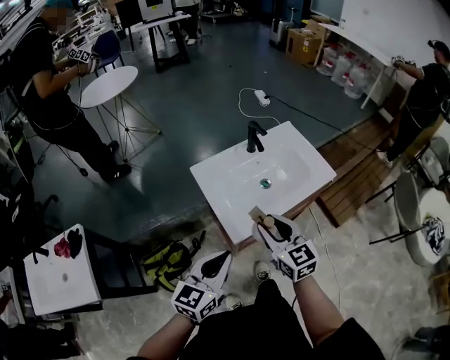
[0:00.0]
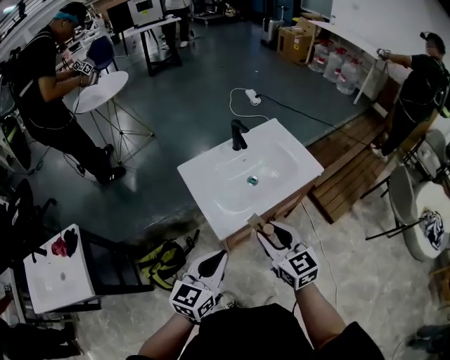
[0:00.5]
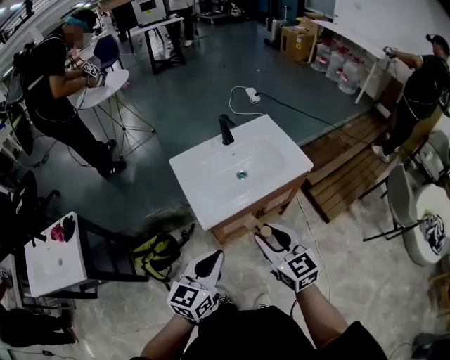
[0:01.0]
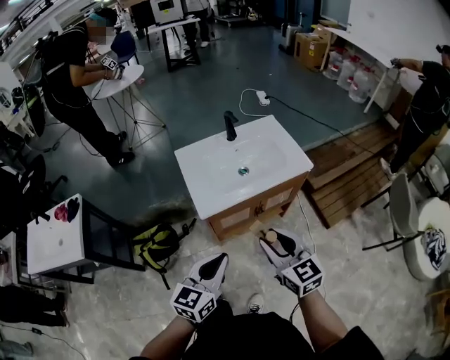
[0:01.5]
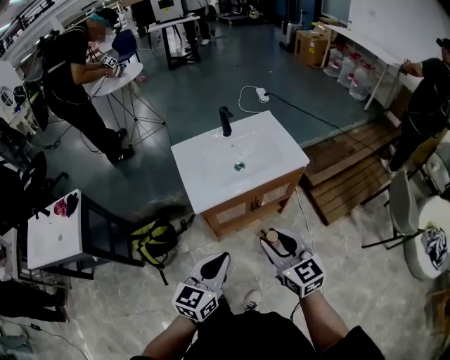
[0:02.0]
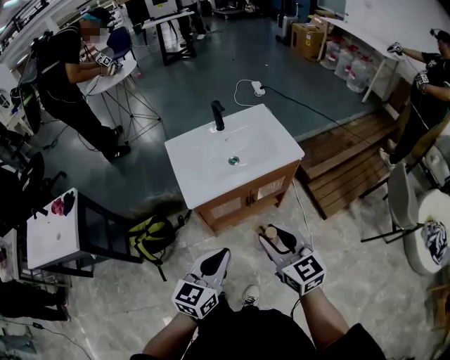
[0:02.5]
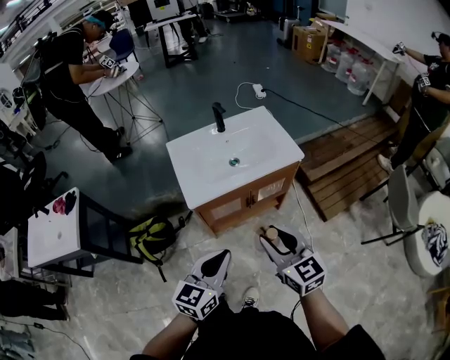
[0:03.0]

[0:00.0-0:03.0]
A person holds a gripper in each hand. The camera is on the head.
0:00.0 to 0:01.5: Both grippers travel together to the right and backward, roughly 20 cm.
0:01.5 to 0:03.0: Both grippers move to the right, approximately 5 cm.

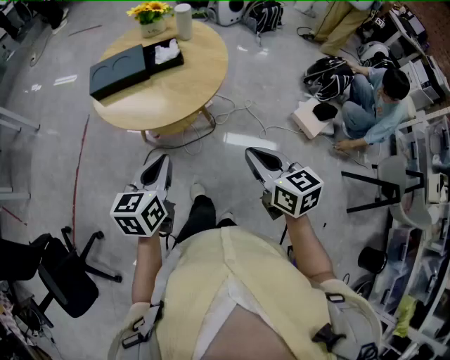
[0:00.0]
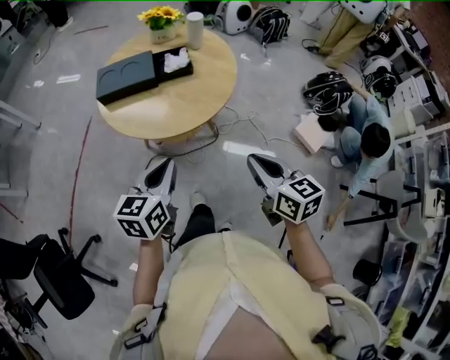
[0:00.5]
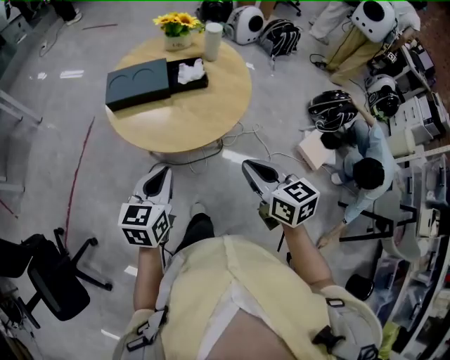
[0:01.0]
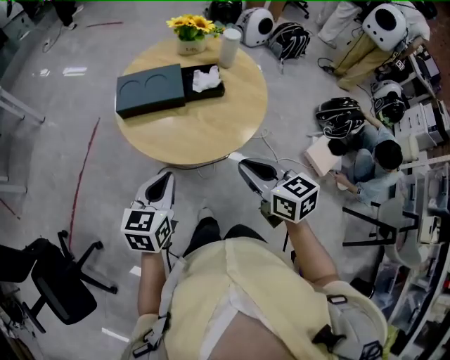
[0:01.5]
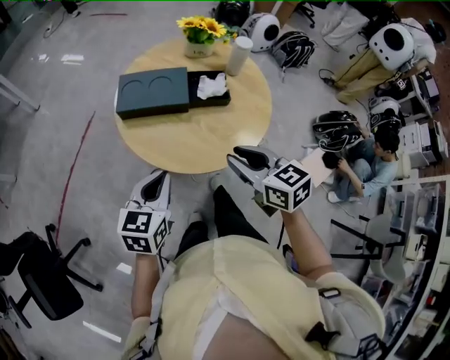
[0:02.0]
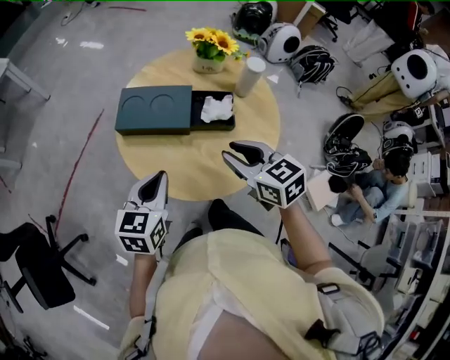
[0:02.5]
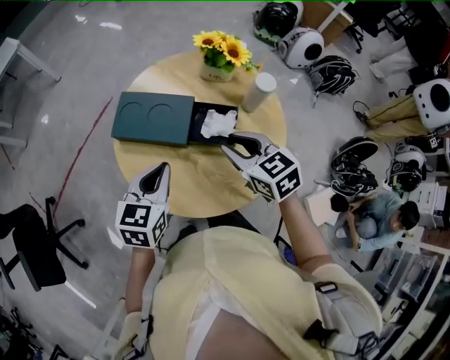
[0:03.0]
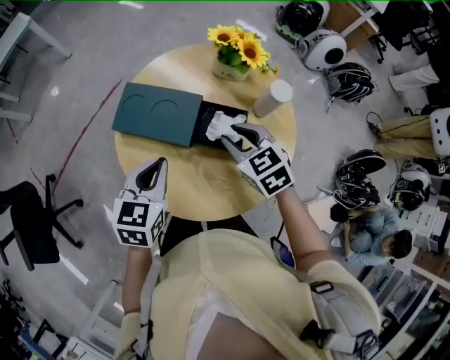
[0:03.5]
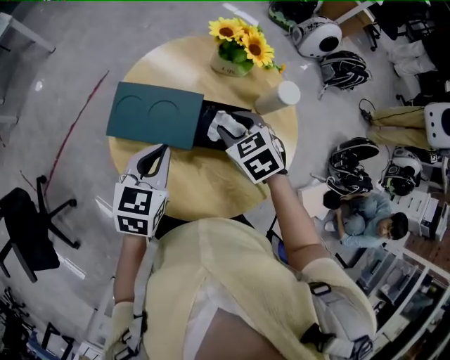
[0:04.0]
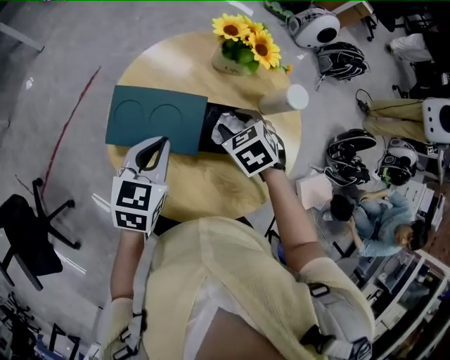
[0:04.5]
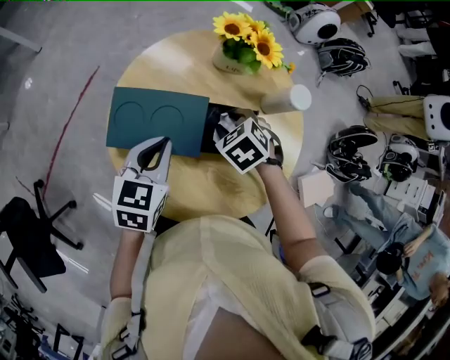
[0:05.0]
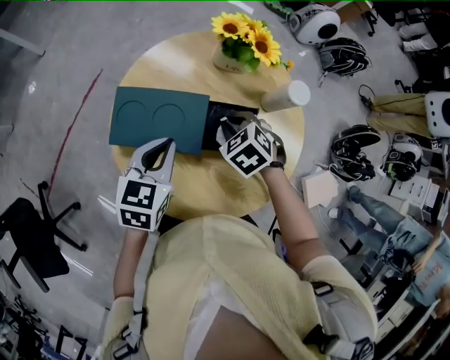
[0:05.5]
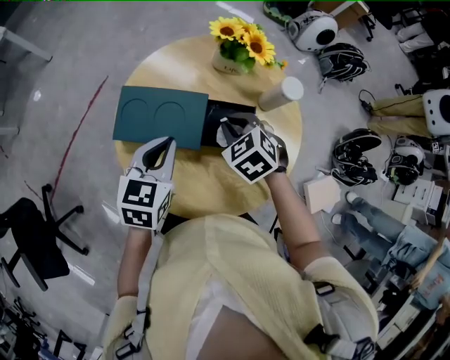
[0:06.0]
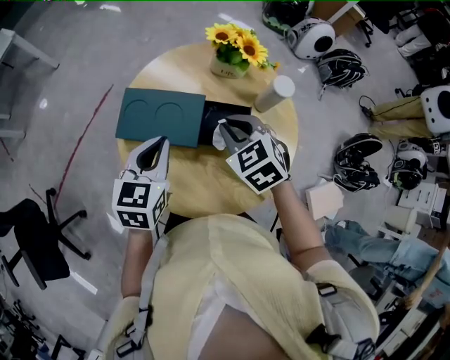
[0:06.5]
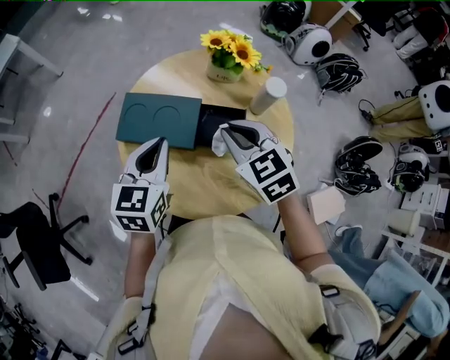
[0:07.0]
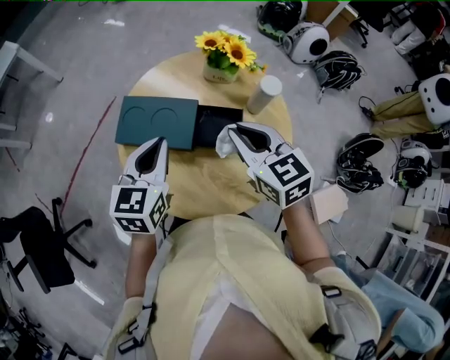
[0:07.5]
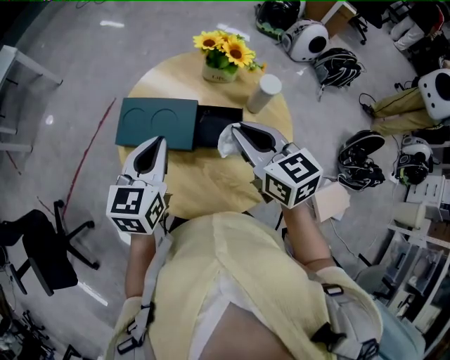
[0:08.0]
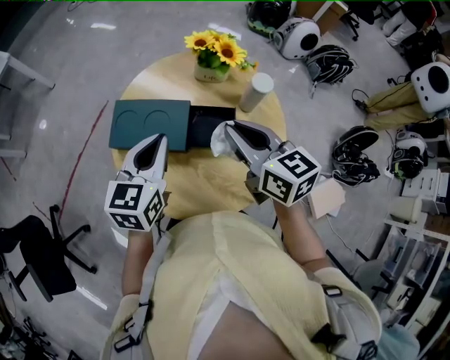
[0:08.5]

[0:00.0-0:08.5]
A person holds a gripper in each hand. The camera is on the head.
0:00.0 to 0:02.0: Both grippers move forward and to the left, roughly 20 cm. The right gripper turns by roughly 20 degrees, and opens its fingers.
0:02.0 to 0:04.0: The left gripper heads forward, covering some 20 cm; the right gripper goes roughly 30 cm forward and downward, and changes its angle by roughly 40 degrees.
0:04.0 to 0:06.5: The right gripper shifts approximately 5 cm upward, and closes its fingers.
0:06.5 to 0:08.5: The right gripper moves upward, roughly 10 cm, and rotates roughly 40 degrees. Meanwhile the left gripper moves roughly 5 cm.

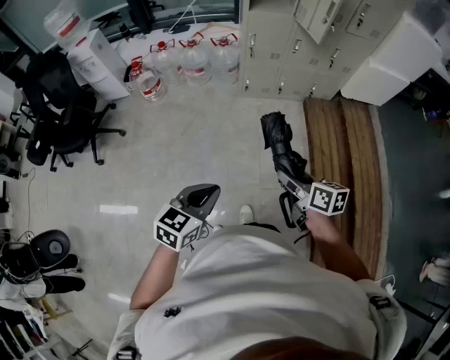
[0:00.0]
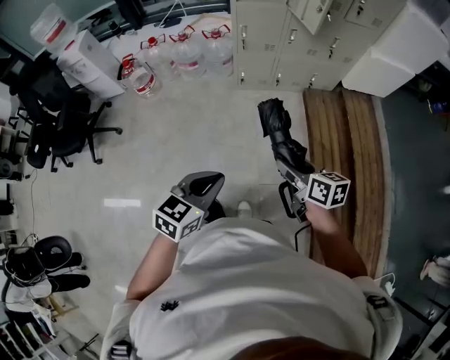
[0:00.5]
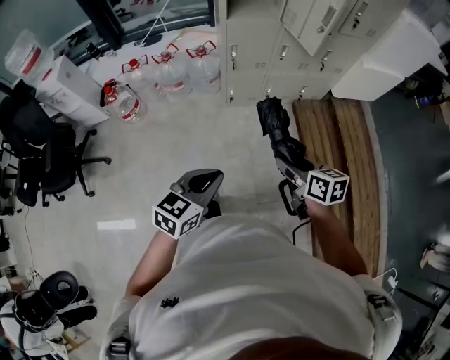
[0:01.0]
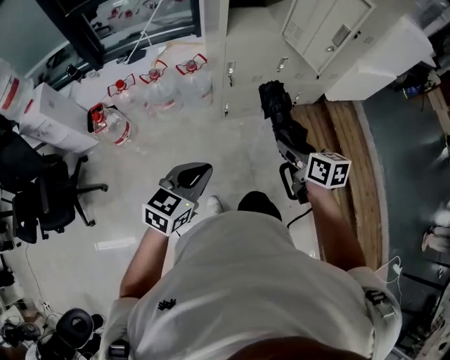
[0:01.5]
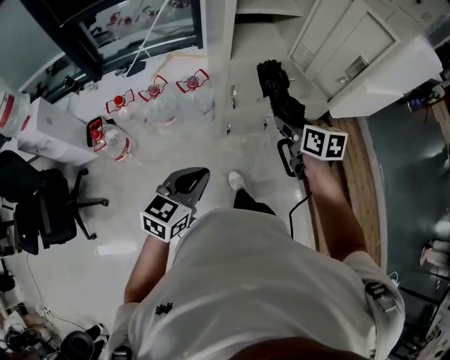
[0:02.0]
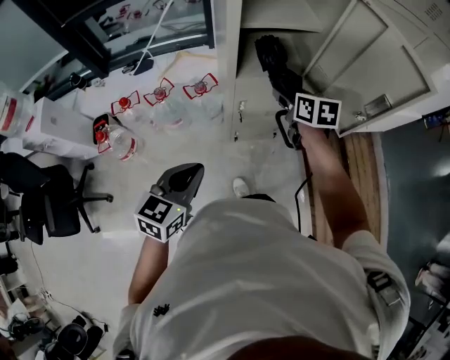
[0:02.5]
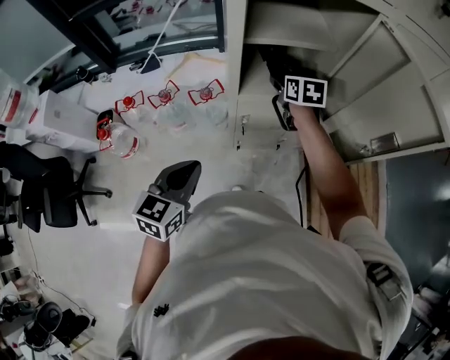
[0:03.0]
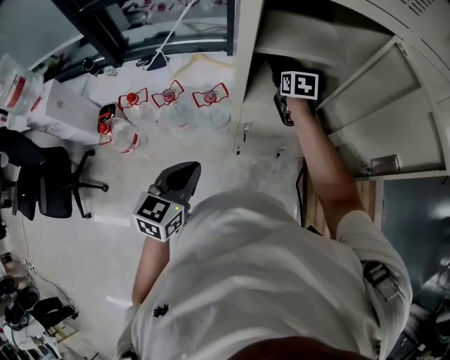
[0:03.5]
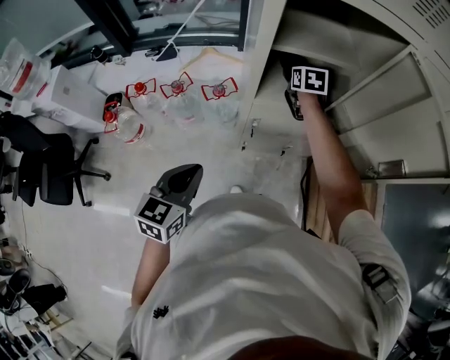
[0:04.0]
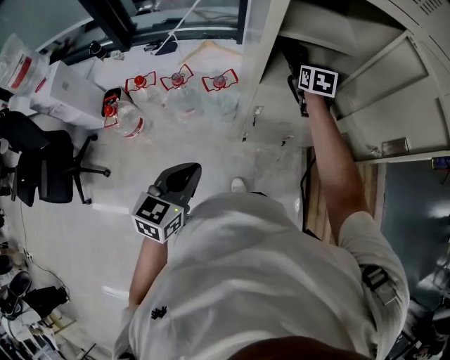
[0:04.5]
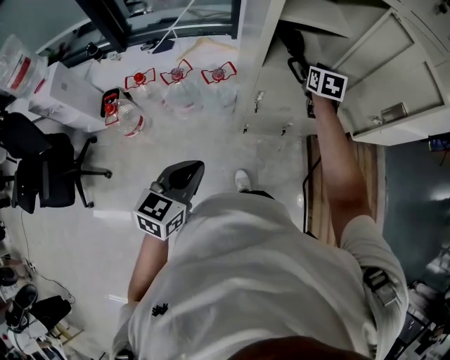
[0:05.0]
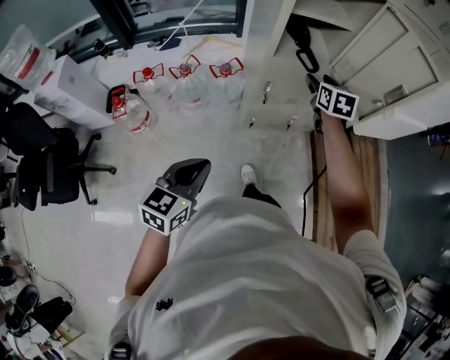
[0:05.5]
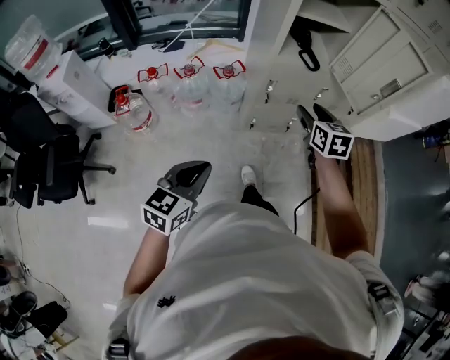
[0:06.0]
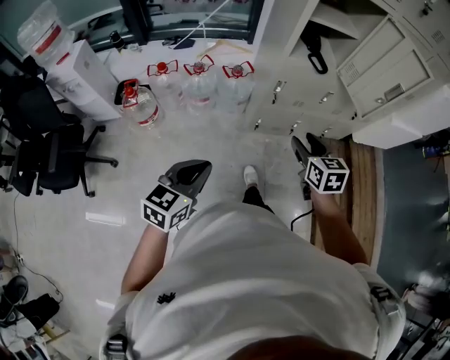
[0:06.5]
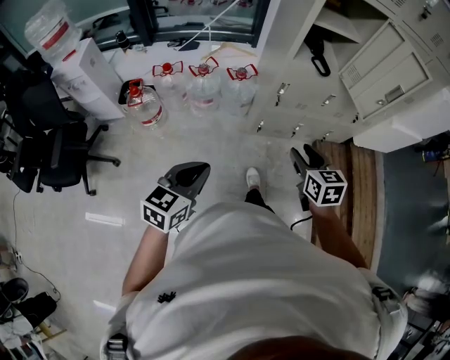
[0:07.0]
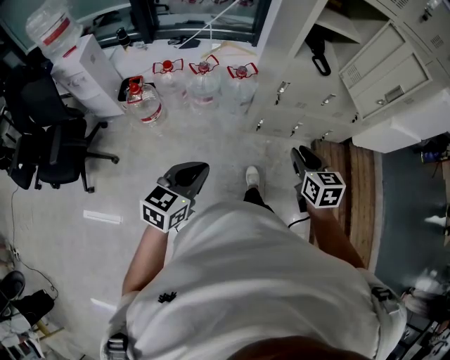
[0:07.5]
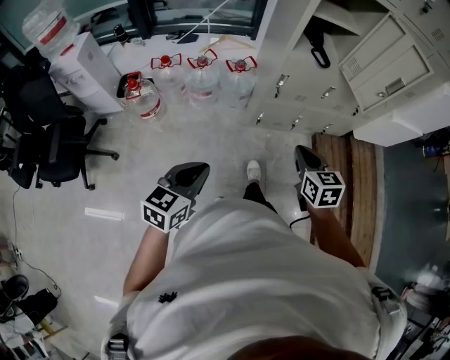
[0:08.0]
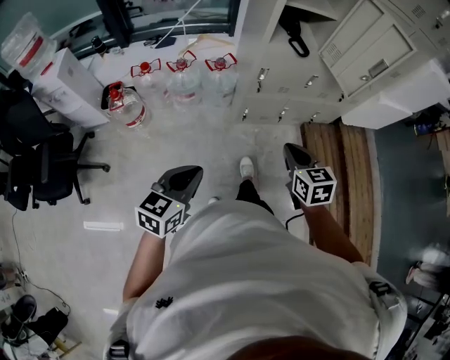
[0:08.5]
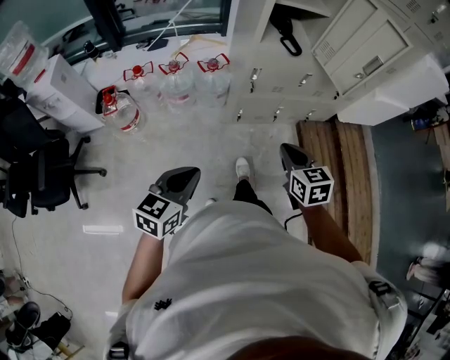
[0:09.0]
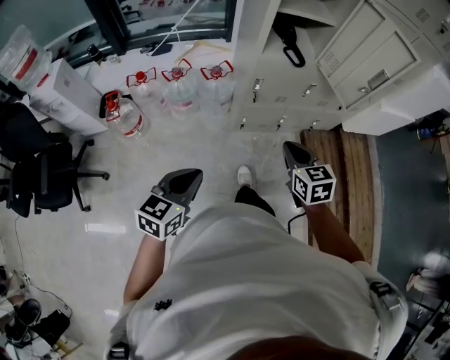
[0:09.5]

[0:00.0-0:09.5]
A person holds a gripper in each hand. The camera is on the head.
0:00.0 to 0:02.0: The pair of grippers is taken forward, roughly 60 cm. The right gripper swivels roughly 20 degrees.
0:02.0 to 0:04.0: The left gripper heads forward, covering approximately 15 cm, and changes its angle by about 20 degrees. Meanwhile the right gripper heads forward, covering approximately 40 cm, and turns by approximately 20 degrees.
0:04.0 to 0:05.5: The two grippers go about 20 cm backward.
0:05.5 to 0:07.5: The left gripper travels backward and to the left by roughly 15 cm. Meanwhile the right gripper is displaced backward by about 35 cm, and closes up.
0:07.5 to 0:09.5: The right gripper shifts roughly 5 cm forward, and closes up. Meanwhile the left gripper heads to the right and forward, covering roughly 10 cm.

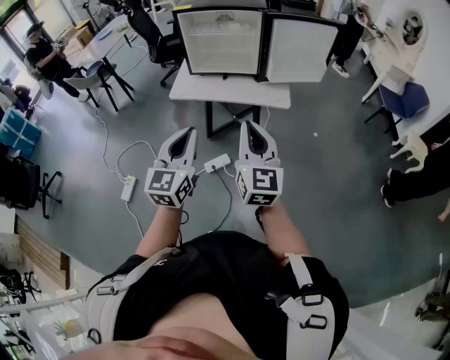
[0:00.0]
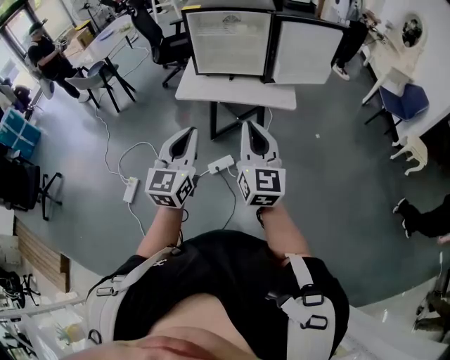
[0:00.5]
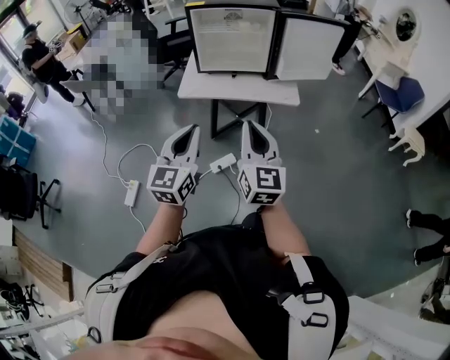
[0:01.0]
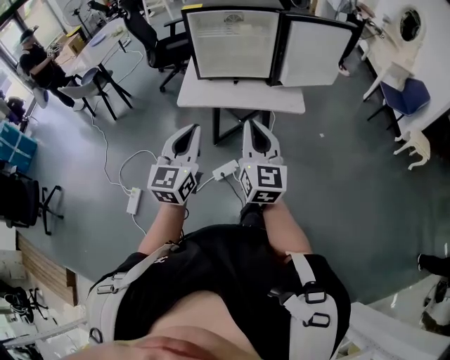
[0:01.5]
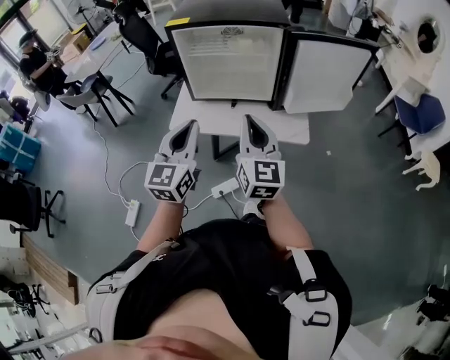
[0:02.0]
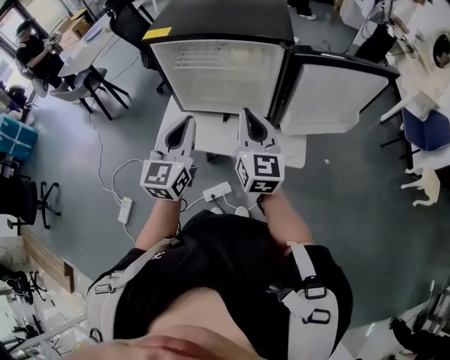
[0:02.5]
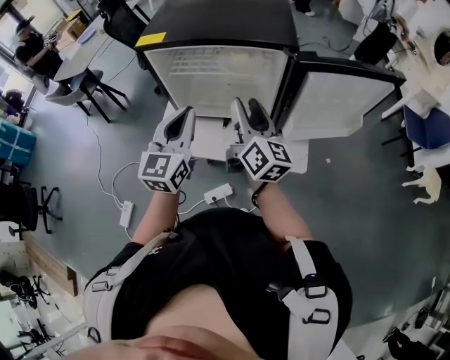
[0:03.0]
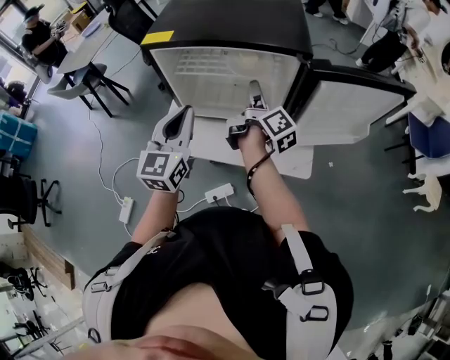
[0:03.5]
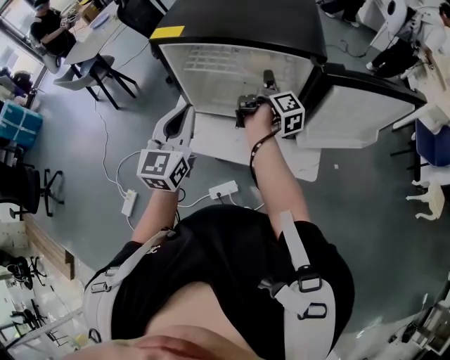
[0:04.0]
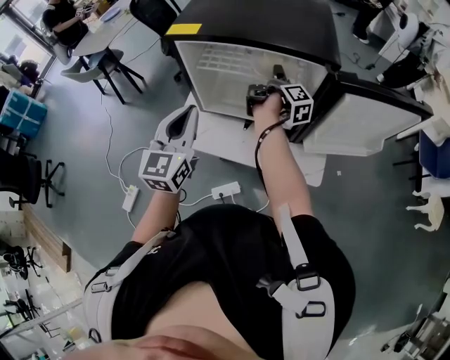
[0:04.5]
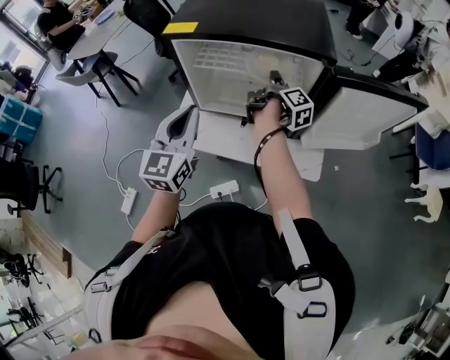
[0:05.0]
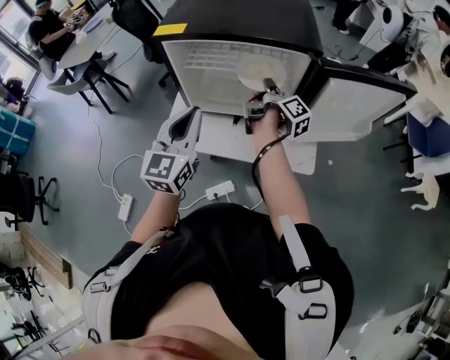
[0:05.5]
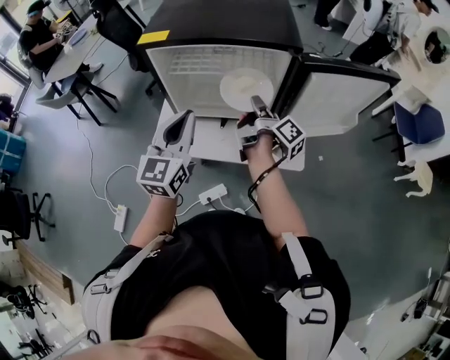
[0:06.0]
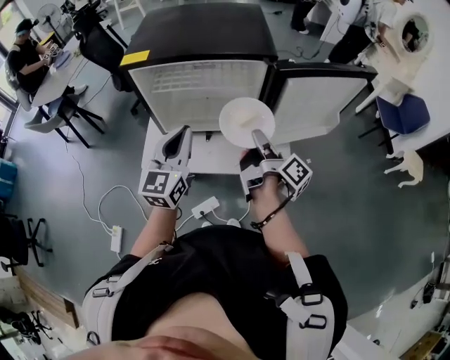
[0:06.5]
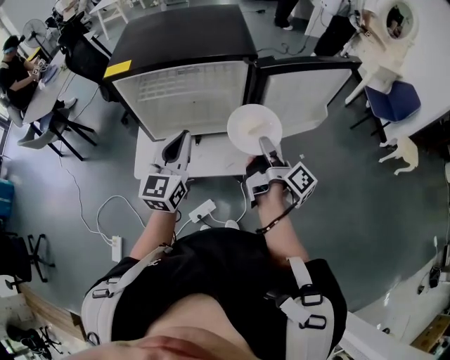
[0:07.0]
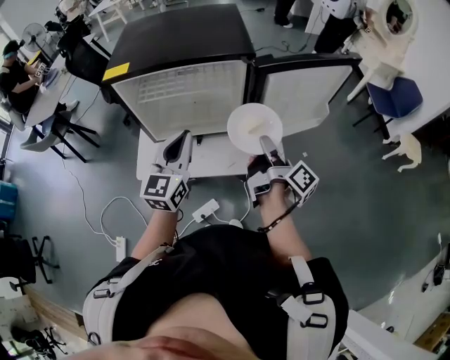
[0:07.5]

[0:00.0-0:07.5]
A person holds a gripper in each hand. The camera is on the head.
0:00.0 to 0:02.0: Both grippers move forward, roughly 25 cm.
0:02.0 to 0:04.0: The left gripper moves forward, approximately 20 cm, while the right gripper heads forward, covering some 35 cm, twists about 80 degrees clockwise, seen from behind, and opens its fingers.
0:04.0 to 0:05.5: The right gripper closes its fingers.
0:05.5 to 0:07.5: The right gripper travels backward and to the right by about 20 cm. Meanwhile the left gripper heads to the right, covering some 10 cm.
